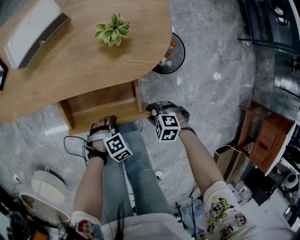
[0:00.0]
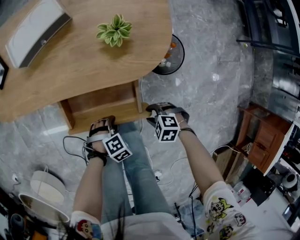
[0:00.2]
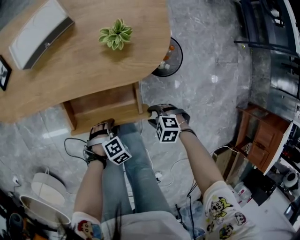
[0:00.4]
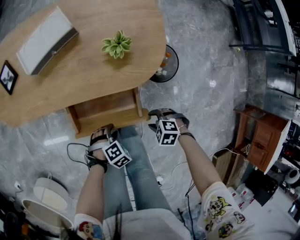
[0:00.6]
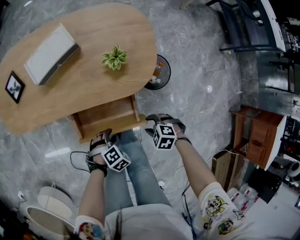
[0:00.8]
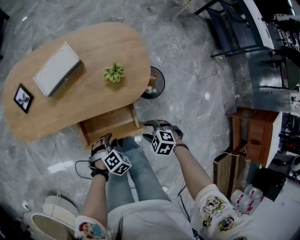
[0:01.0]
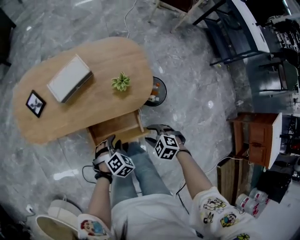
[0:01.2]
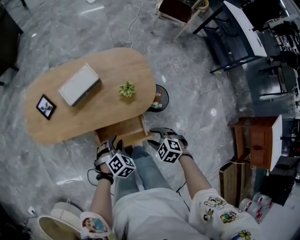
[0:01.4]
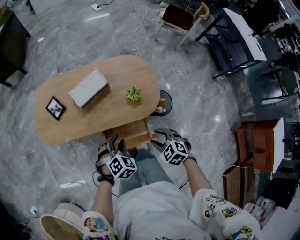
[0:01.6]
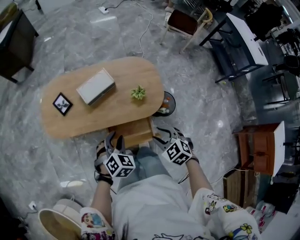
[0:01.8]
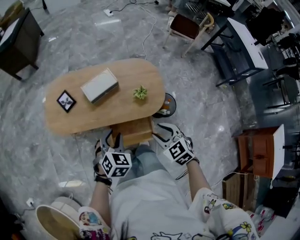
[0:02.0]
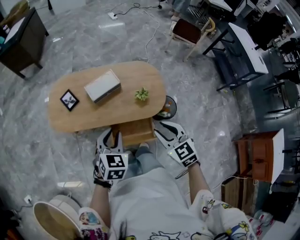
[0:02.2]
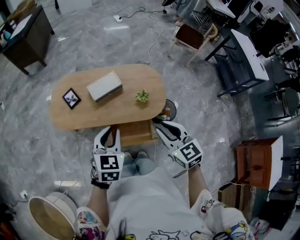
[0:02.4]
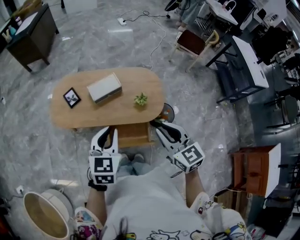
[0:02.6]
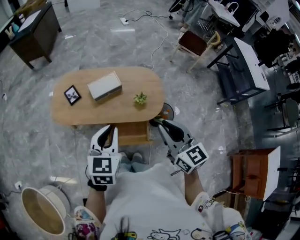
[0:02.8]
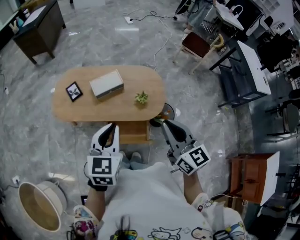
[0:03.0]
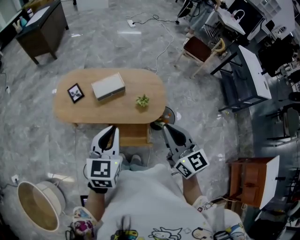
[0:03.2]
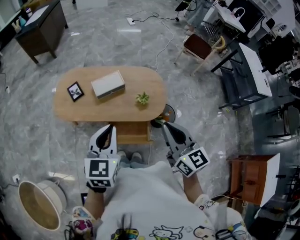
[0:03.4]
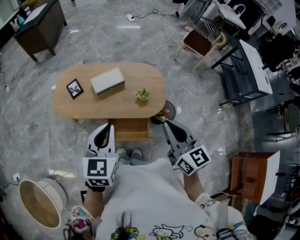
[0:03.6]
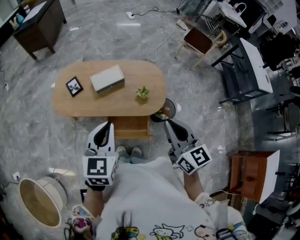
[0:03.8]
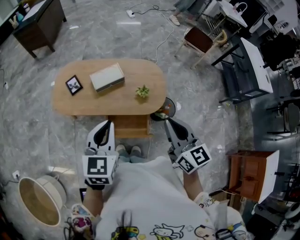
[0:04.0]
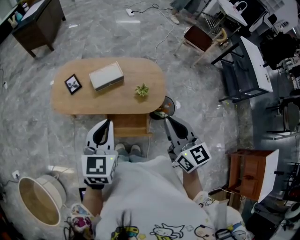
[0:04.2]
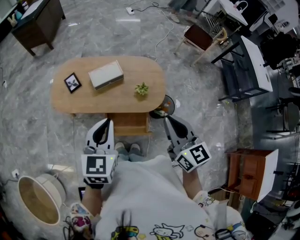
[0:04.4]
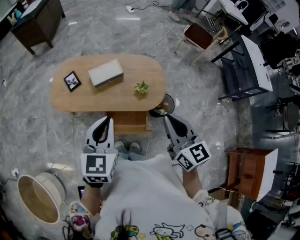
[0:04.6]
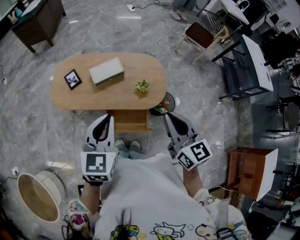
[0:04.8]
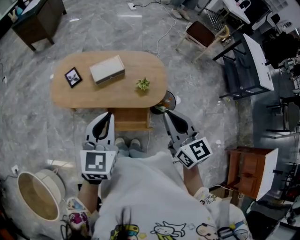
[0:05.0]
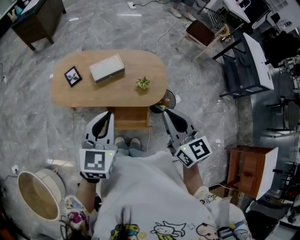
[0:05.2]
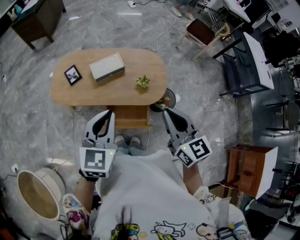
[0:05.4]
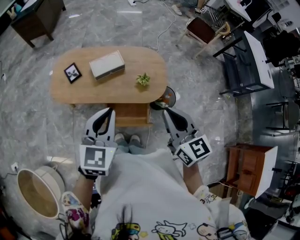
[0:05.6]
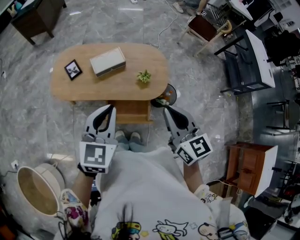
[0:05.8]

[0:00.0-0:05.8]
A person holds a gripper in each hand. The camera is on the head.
0:00.0 to 0:01.4: Both grippers move upward, about 30 cm. The left gripper changes its angle by some 30 degrees, while the right gripper rotates about 30 degrees.
0:01.4 to 0:02.8: The two grippers go some 35 cm upward. The left gripper angles its fingers upward, by some 40 degrees, and closes its fingers; the right gripper tips its fingers upward by about 50 degrees, and closes.
0:02.8 to 0:05.8: The grippers stay close to where they were, moving slightly.

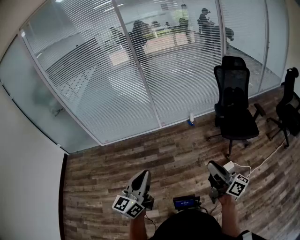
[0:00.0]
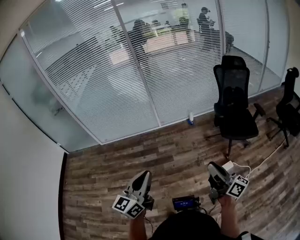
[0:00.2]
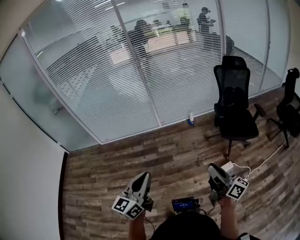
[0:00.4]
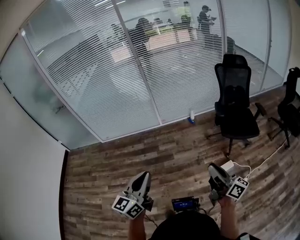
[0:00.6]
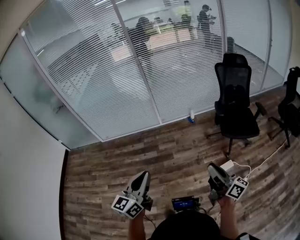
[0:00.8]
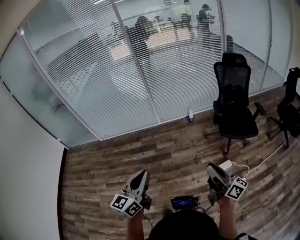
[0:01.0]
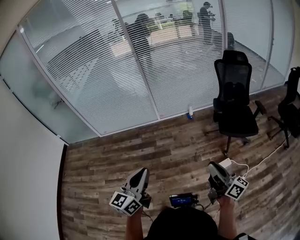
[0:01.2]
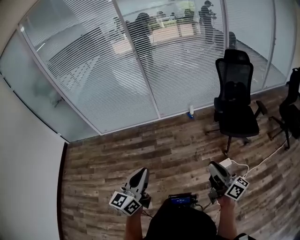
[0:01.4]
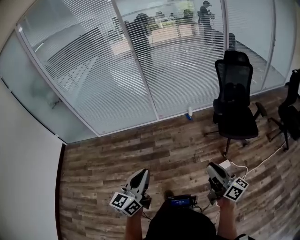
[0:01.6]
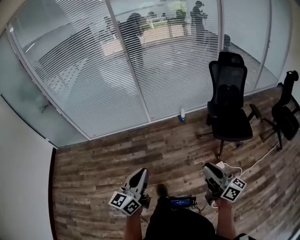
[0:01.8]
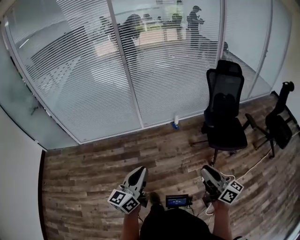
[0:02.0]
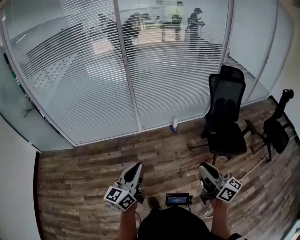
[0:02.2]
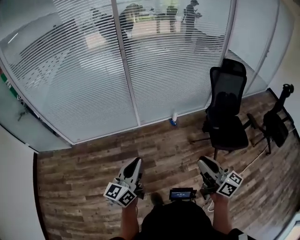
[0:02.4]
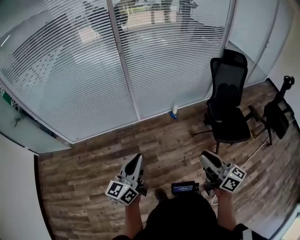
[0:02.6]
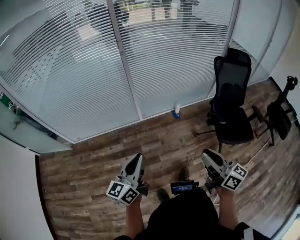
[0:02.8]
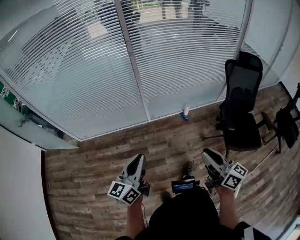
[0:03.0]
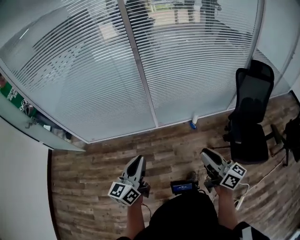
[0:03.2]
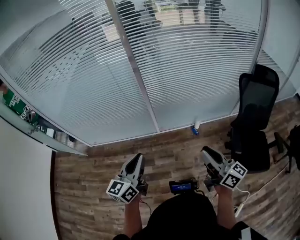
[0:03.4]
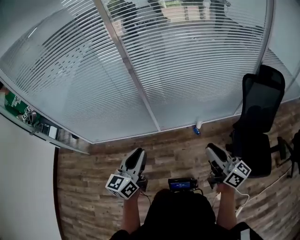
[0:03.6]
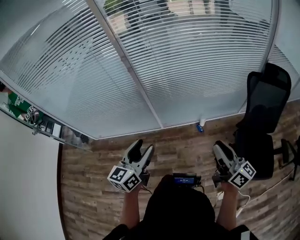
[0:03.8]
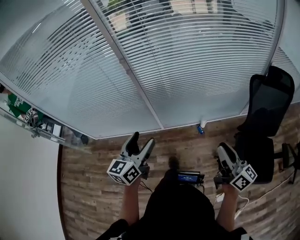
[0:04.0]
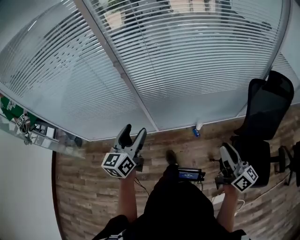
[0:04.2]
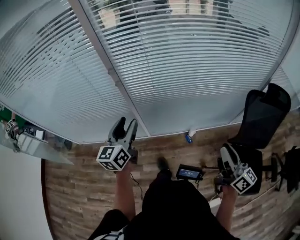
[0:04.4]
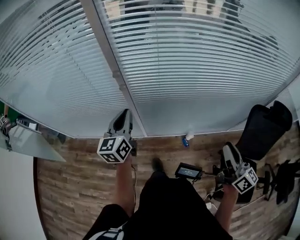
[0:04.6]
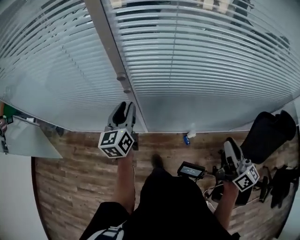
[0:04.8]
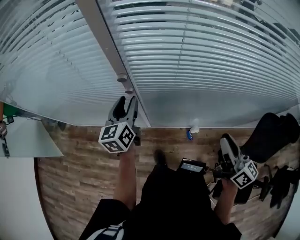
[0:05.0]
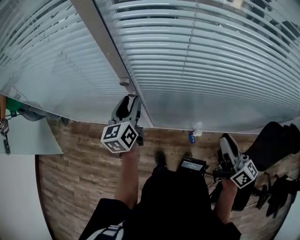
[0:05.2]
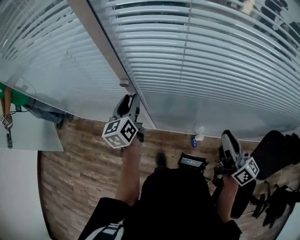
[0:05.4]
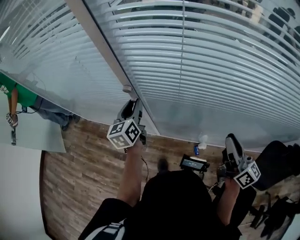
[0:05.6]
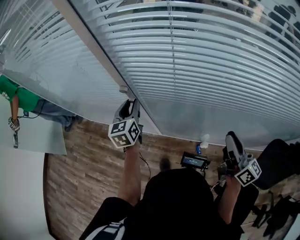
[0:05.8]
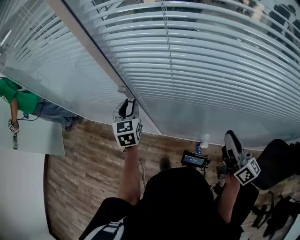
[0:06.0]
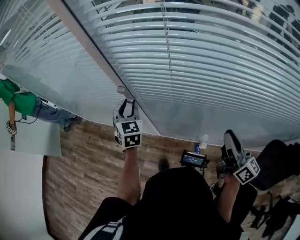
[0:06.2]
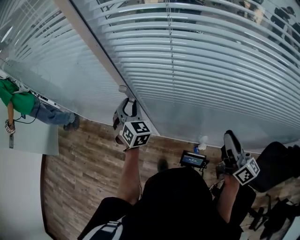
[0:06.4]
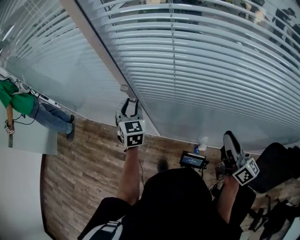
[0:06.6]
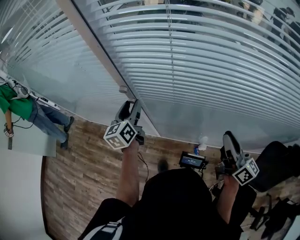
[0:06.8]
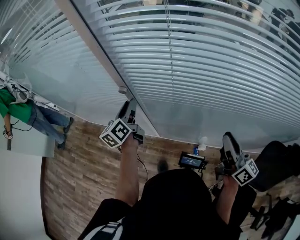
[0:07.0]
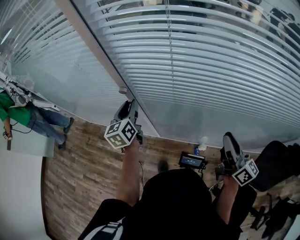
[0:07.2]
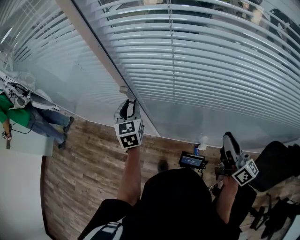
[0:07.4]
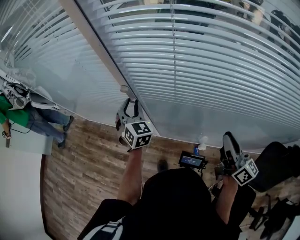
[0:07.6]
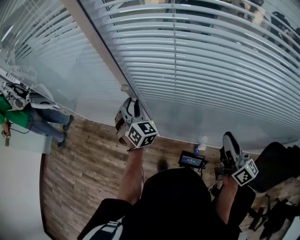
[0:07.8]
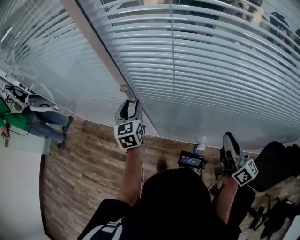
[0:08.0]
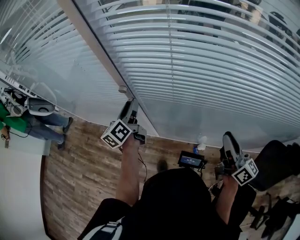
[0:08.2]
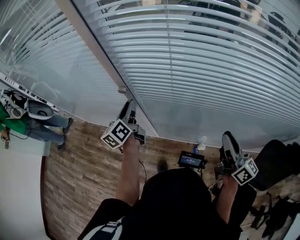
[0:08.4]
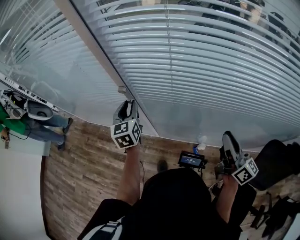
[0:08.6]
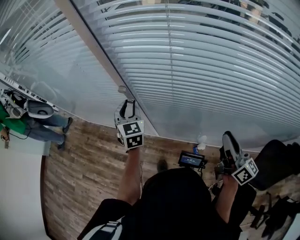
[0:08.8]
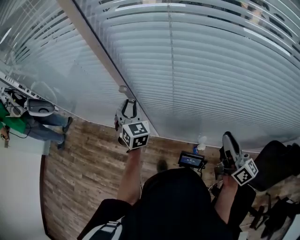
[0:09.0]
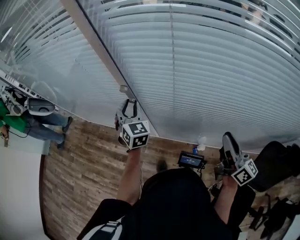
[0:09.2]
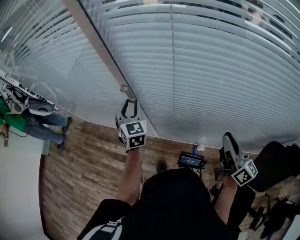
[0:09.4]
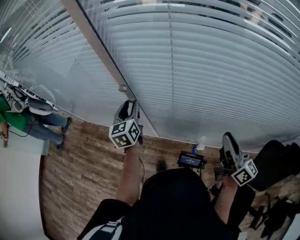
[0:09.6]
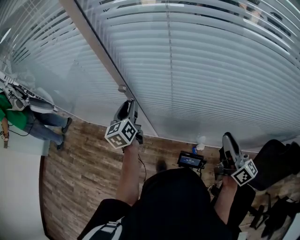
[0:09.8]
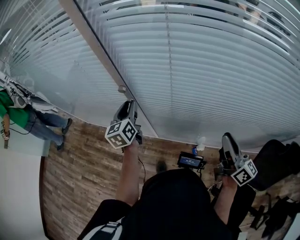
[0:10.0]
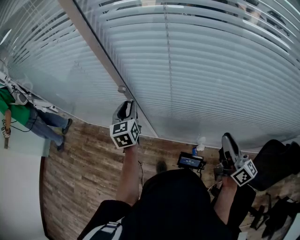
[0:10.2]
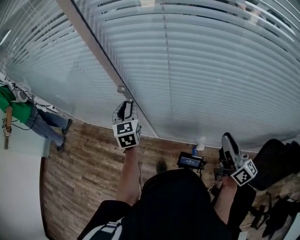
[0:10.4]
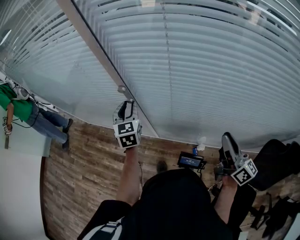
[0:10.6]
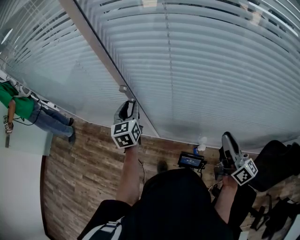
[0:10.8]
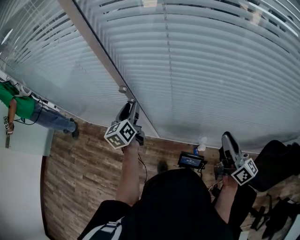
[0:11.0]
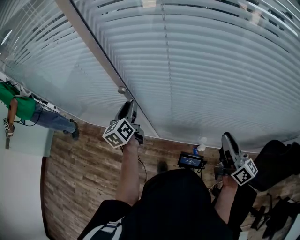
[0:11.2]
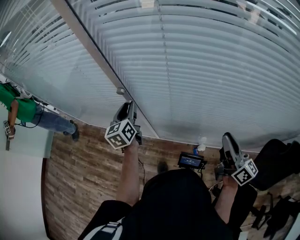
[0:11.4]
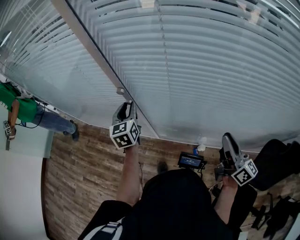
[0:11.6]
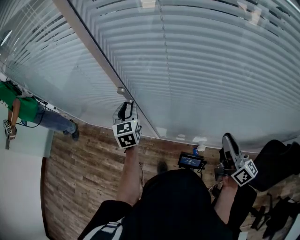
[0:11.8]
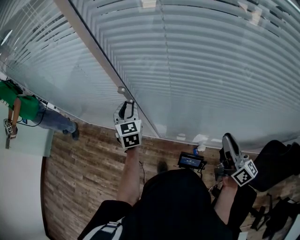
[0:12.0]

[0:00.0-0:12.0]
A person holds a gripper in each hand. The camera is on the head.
0:00.0 to 0:01.6: Both grippers travel together to the right, roughly 5 cm.
0:01.6 to 0:03.0: The grippers both shift forward by about 30 cm.
0:03.0 to 0:04.4: The right gripper shifts roughly 40 cm forward and to the right; the left gripper is displaced forward by approximately 40 cm, swivels some 20 degrees, and opens up.
0:04.4 to 0:06.0: The two grippers go some 25 cm forward. The left gripper swivels some 40 degrees, and closes up.
0:06.0 to 0:07.6: The left gripper turns by roughly 20 degrees.
0:09.0 to 0:10.4: The left gripper swivels about 20 degrees.

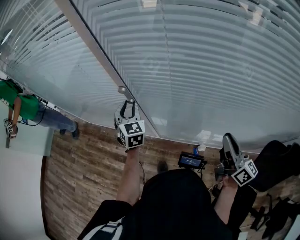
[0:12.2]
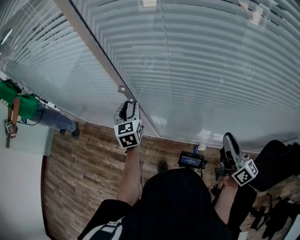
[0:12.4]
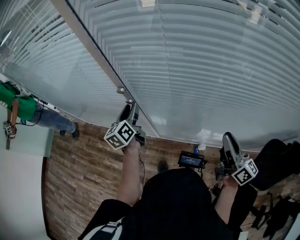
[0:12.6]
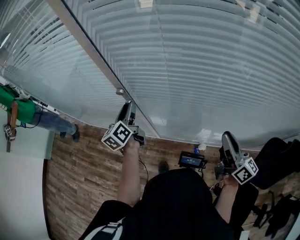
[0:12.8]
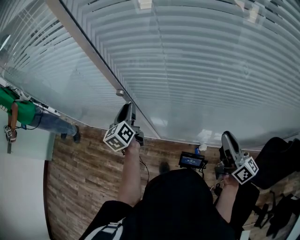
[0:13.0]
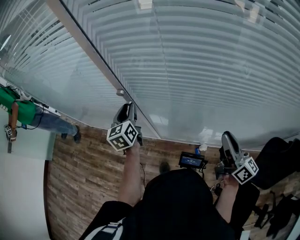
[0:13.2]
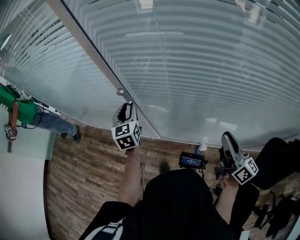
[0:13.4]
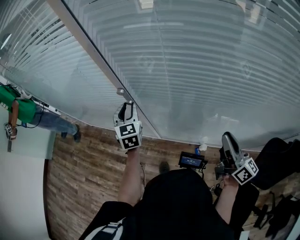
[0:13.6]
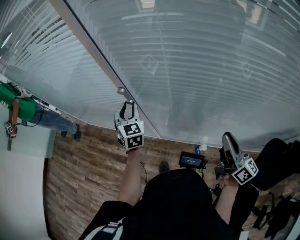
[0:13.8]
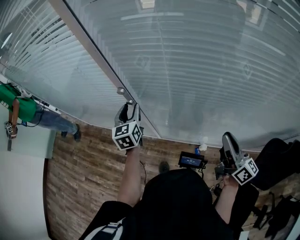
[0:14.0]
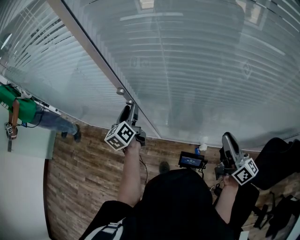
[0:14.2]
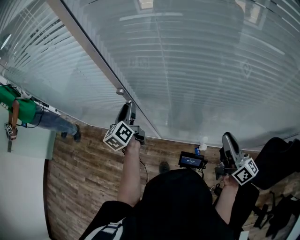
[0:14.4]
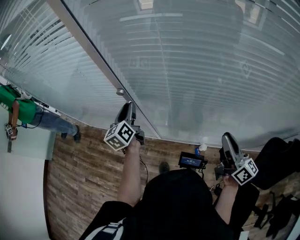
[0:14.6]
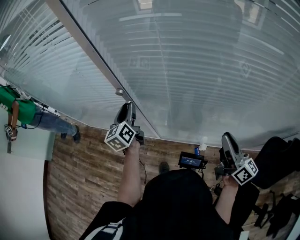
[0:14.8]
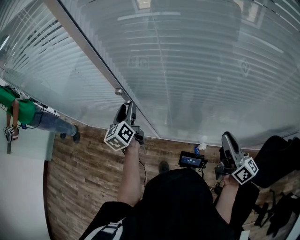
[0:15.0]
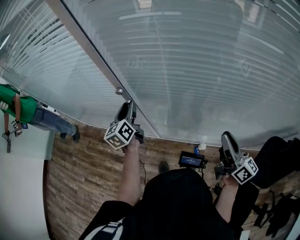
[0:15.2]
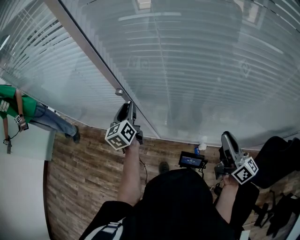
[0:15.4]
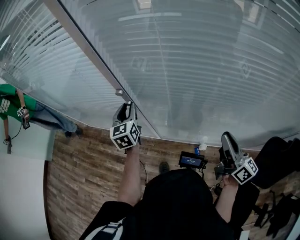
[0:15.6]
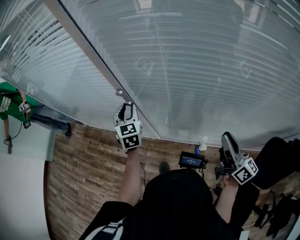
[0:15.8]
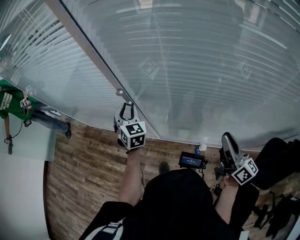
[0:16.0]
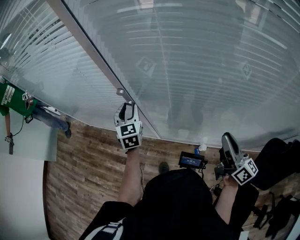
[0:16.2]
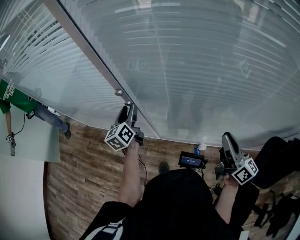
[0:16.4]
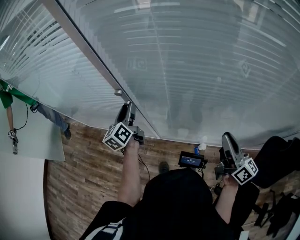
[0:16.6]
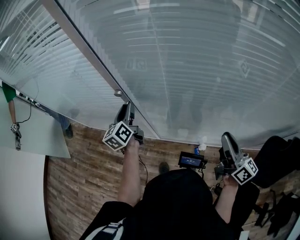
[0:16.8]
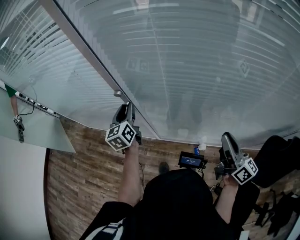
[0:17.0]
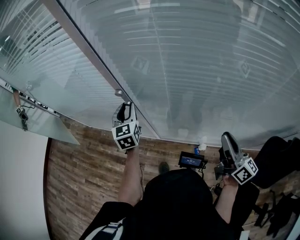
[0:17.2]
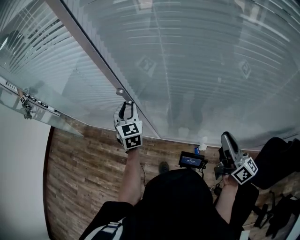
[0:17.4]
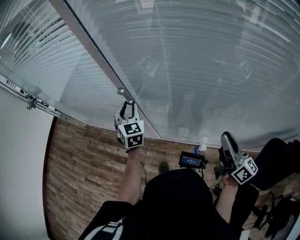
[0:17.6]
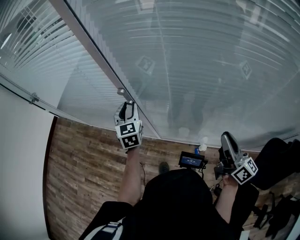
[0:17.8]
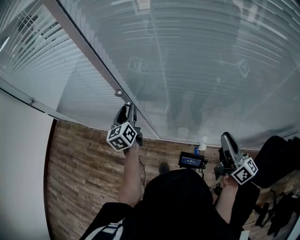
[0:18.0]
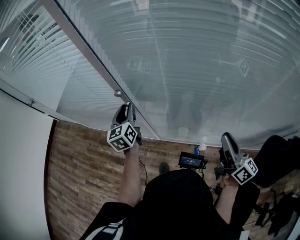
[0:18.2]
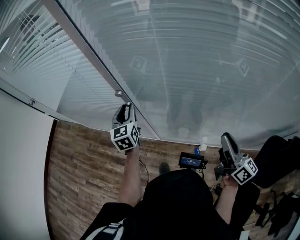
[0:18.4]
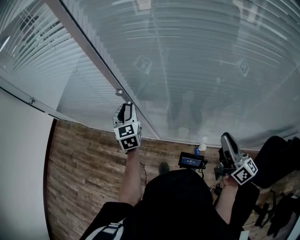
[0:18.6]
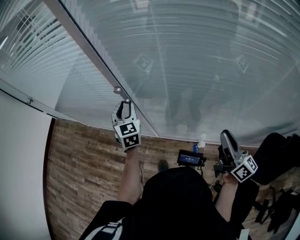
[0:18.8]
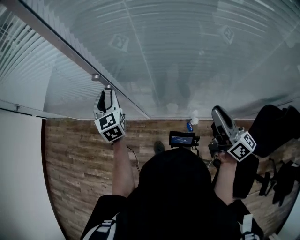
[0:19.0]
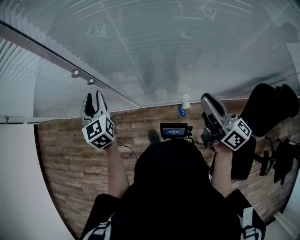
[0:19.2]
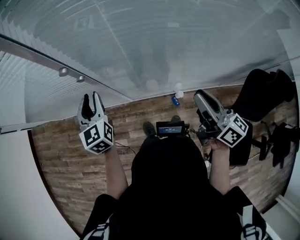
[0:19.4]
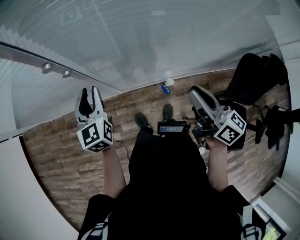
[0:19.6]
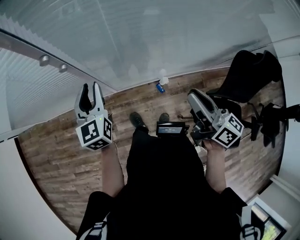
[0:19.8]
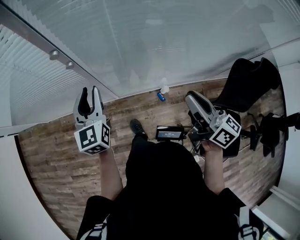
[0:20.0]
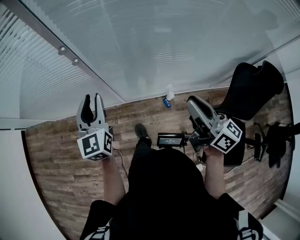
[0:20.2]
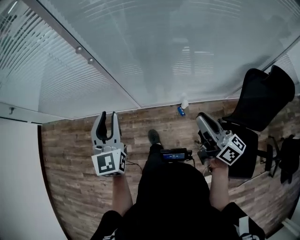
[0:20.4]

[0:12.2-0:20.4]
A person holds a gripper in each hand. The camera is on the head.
0:13.8 to 0:15.4: The left gripper changes its angle by roughly 40 degrees.
0:15.4 to 0:17.2: The left gripper changes its angle by approximately 20 degrees.
0:17.2 to 0:18.8: The grippers stay close to where they were, moving slightly.
0:18.8 to 0:20.4: The left gripper is displaced backward by some 25 cm, and turns by roughly 20 degrees. The right gripper heads backward, covering about 20 cm.
